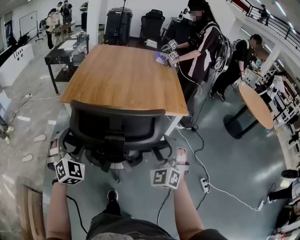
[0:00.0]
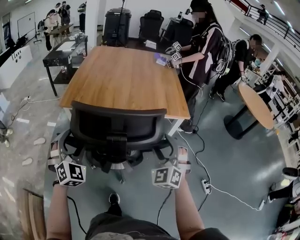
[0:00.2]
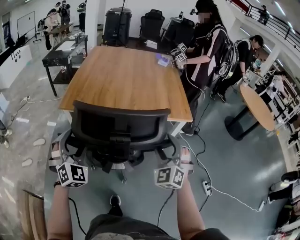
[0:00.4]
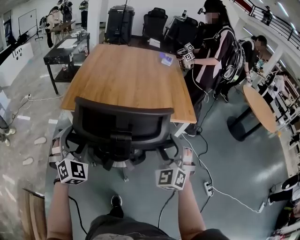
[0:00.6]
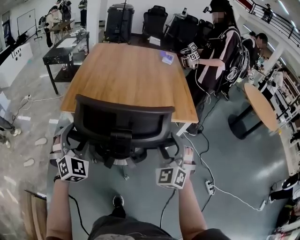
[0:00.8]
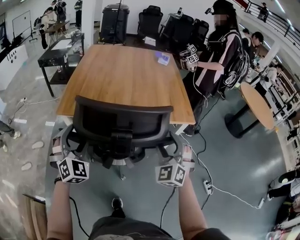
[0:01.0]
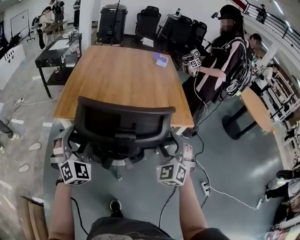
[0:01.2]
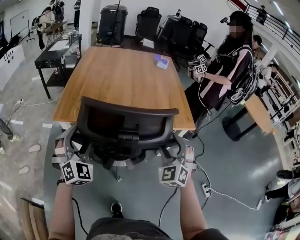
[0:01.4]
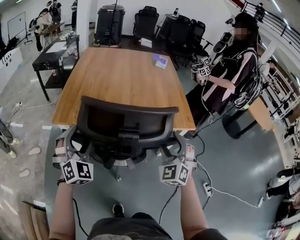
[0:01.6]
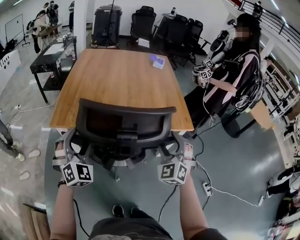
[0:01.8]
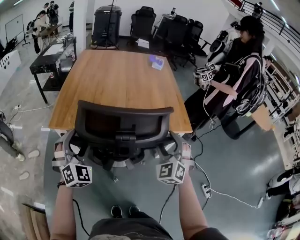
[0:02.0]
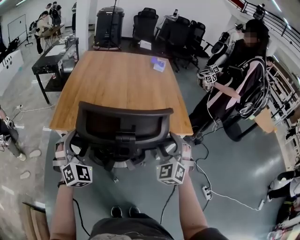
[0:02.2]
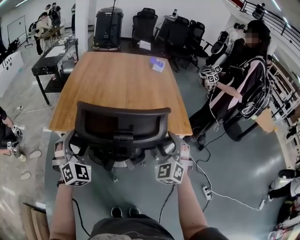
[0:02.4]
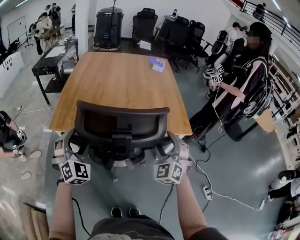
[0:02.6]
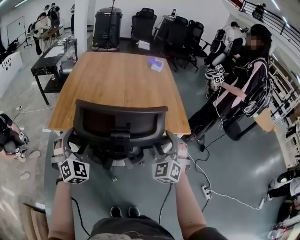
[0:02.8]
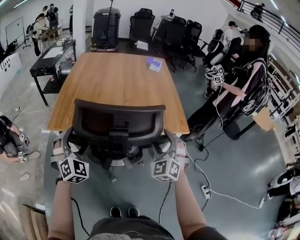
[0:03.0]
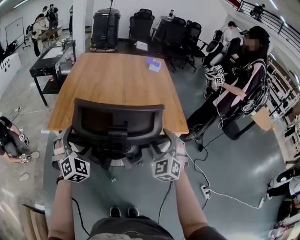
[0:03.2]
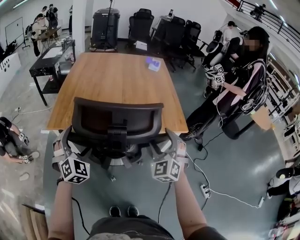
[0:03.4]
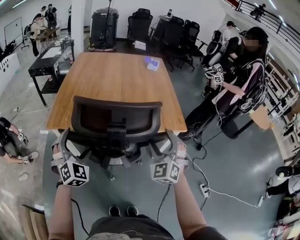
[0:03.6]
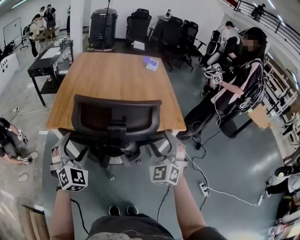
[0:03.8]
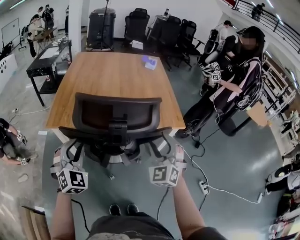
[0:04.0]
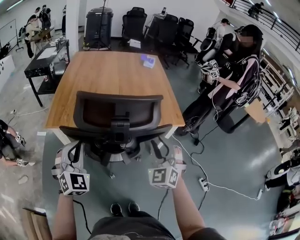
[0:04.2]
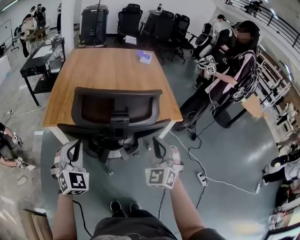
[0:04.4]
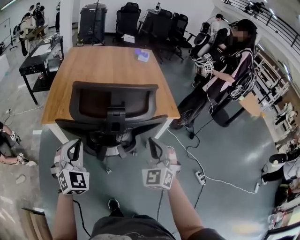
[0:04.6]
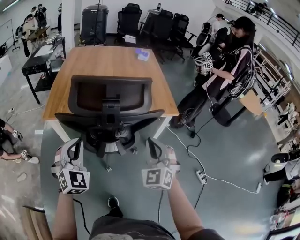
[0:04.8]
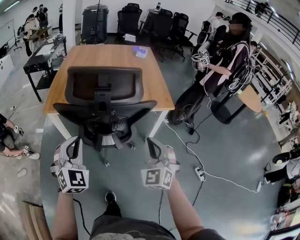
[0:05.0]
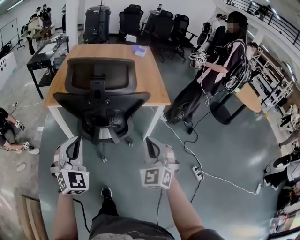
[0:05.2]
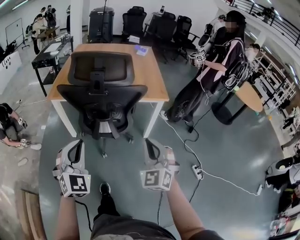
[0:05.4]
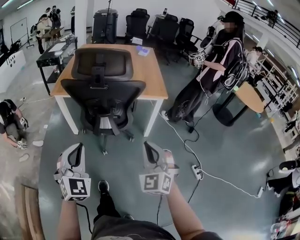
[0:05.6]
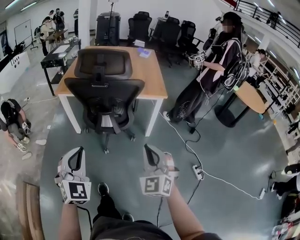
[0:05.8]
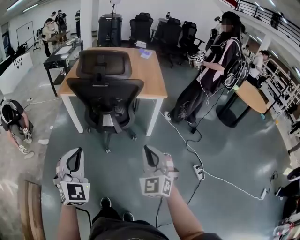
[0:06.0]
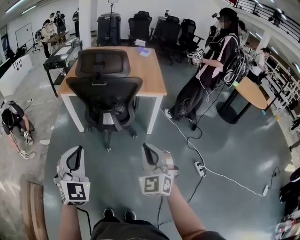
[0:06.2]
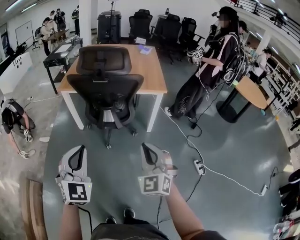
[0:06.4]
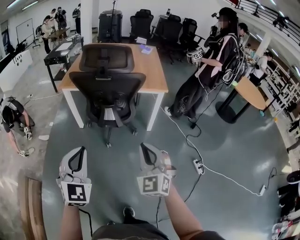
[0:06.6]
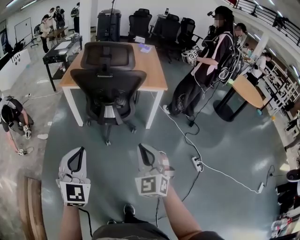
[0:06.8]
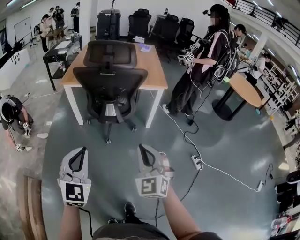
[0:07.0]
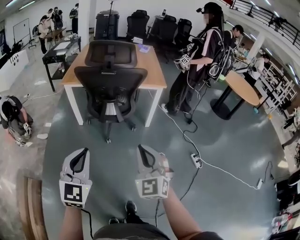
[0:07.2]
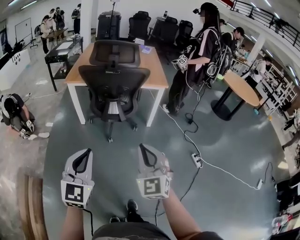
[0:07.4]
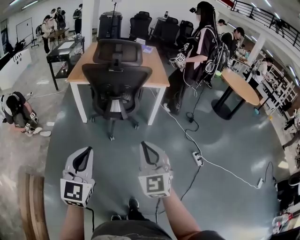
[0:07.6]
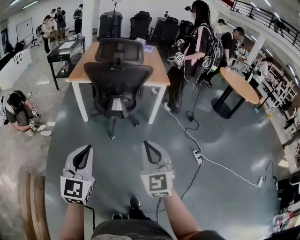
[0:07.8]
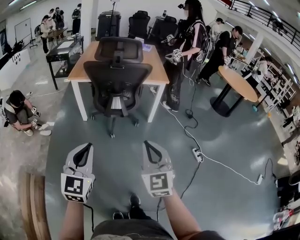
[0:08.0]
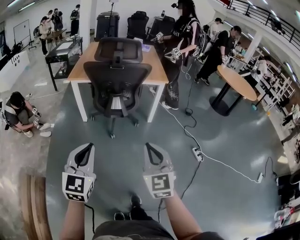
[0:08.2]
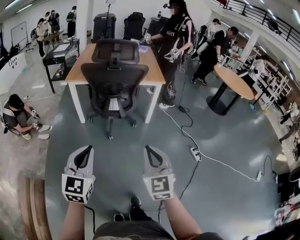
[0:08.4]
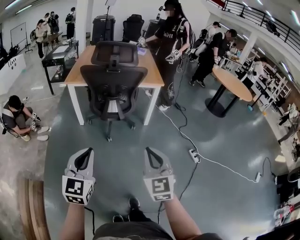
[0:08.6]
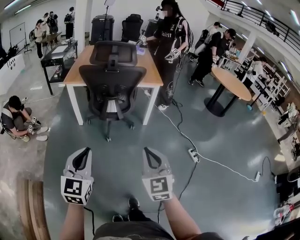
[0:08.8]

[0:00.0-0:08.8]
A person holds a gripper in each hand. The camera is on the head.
0:00.0 to 0:01.4: Both grippers move forward, roughly 20 cm.
0:01.4 to 0:03.0: The grippers make only small movements.
0:03.0 to 0:04.4: Both grippers move backward, roughly 10 cm. The right gripper closes up; the left gripper closes up.
0:04.4 to 0:05.8: The right gripper goes approximately 30 cm backward, while the left gripper travels backward and to the right by approximately 35 cm.
0:05.8 to 0:07.4: The right gripper is displaced backward and to the left by roughly 15 cm. The left gripper travels backward by roughly 15 cm, and turns by about 20 degrees.
0:07.4 to 0:08.8: The right gripper moves backward, roughly 5 cm.

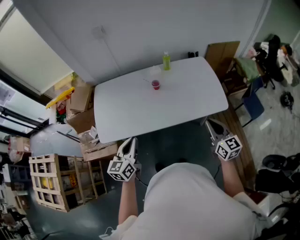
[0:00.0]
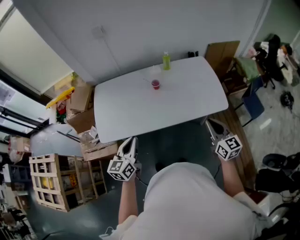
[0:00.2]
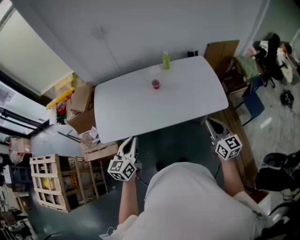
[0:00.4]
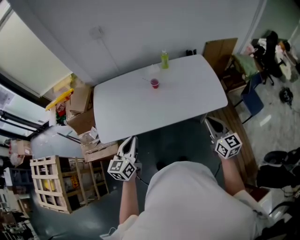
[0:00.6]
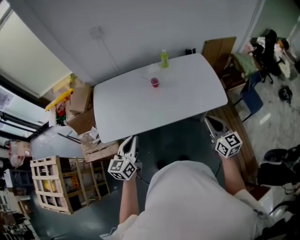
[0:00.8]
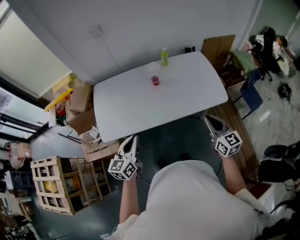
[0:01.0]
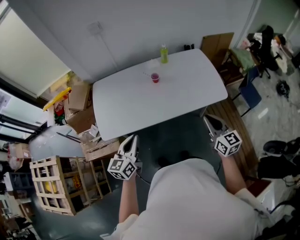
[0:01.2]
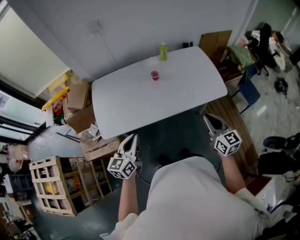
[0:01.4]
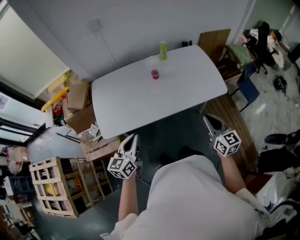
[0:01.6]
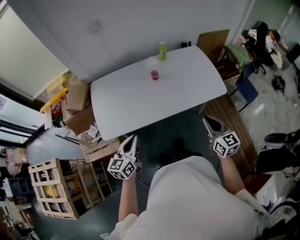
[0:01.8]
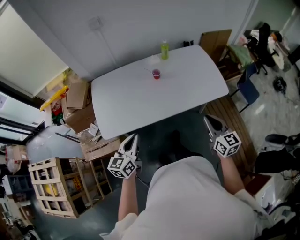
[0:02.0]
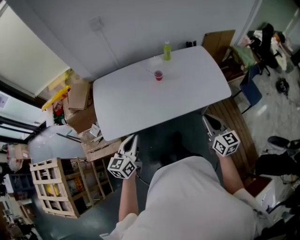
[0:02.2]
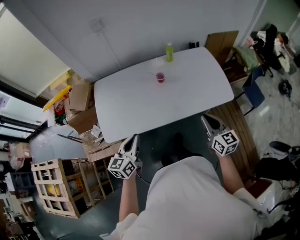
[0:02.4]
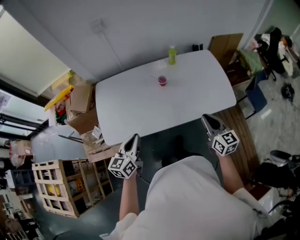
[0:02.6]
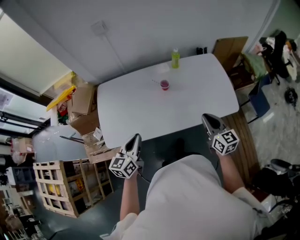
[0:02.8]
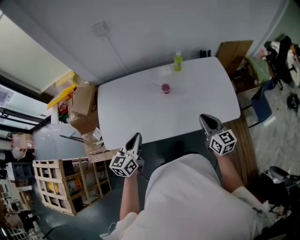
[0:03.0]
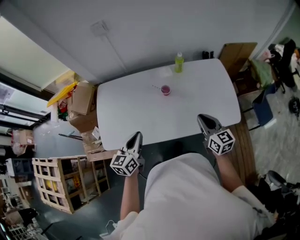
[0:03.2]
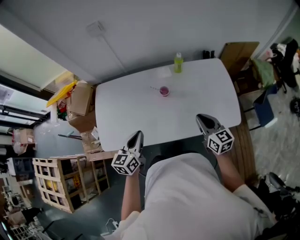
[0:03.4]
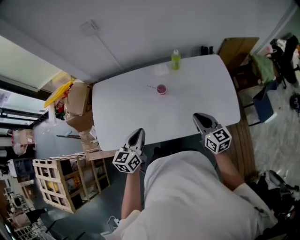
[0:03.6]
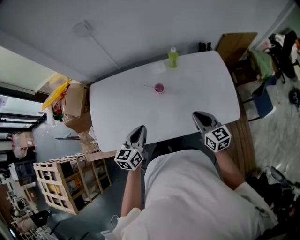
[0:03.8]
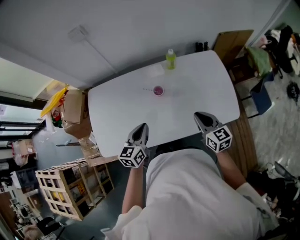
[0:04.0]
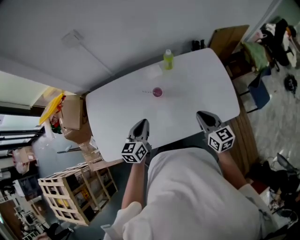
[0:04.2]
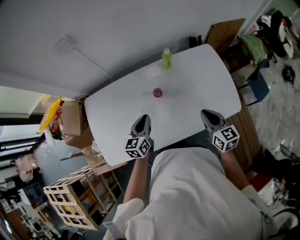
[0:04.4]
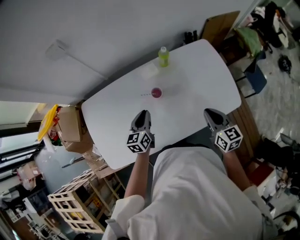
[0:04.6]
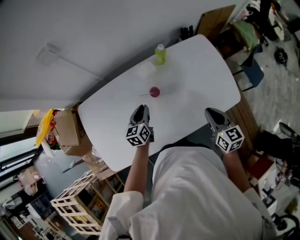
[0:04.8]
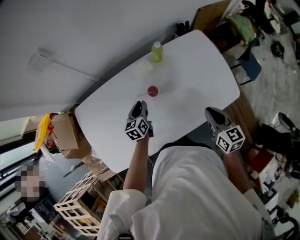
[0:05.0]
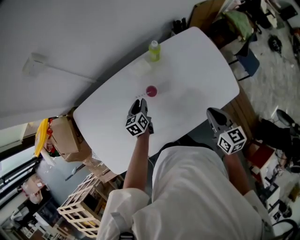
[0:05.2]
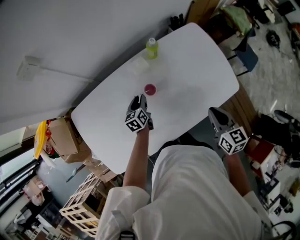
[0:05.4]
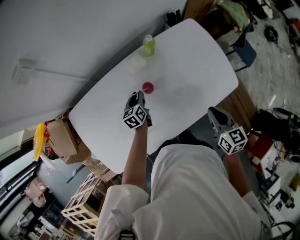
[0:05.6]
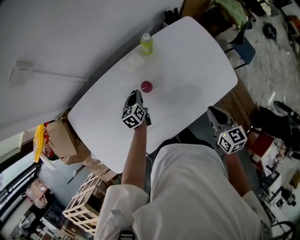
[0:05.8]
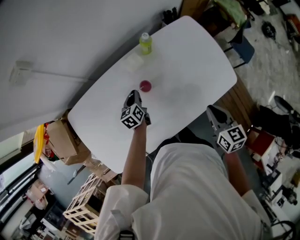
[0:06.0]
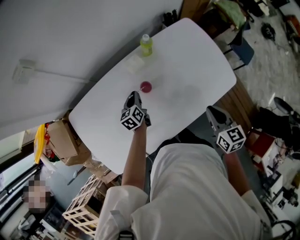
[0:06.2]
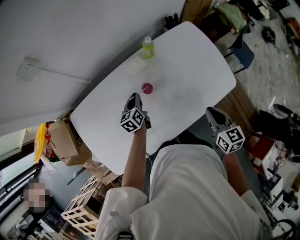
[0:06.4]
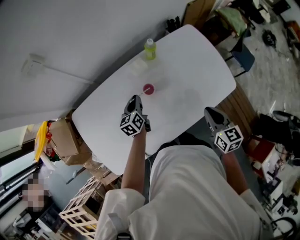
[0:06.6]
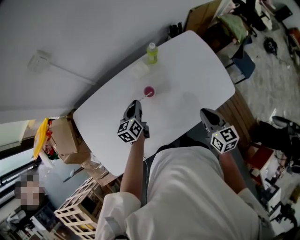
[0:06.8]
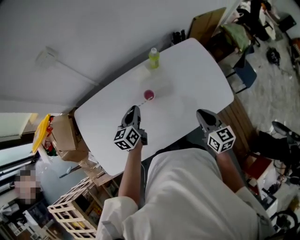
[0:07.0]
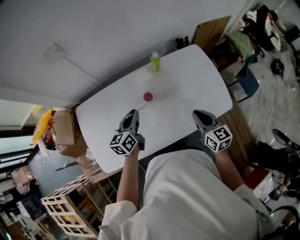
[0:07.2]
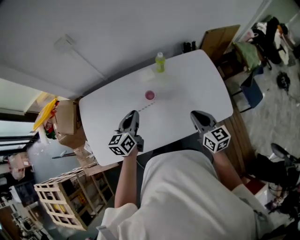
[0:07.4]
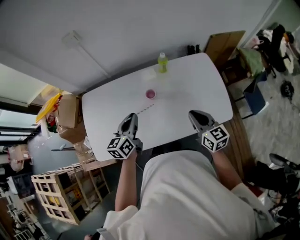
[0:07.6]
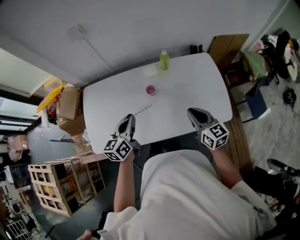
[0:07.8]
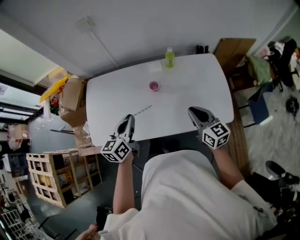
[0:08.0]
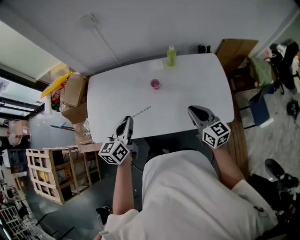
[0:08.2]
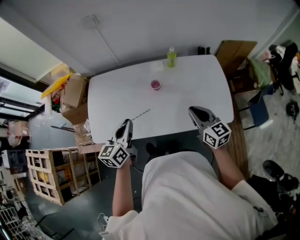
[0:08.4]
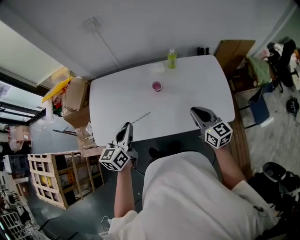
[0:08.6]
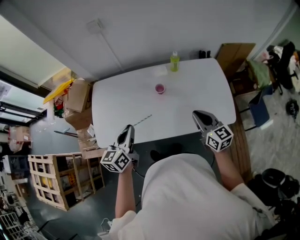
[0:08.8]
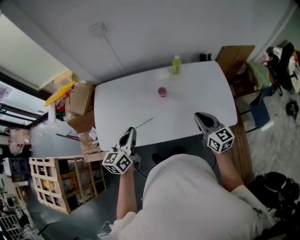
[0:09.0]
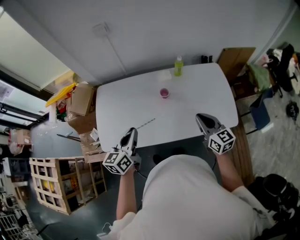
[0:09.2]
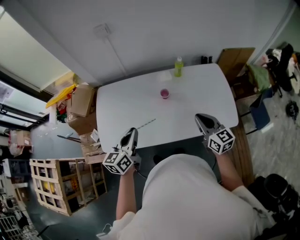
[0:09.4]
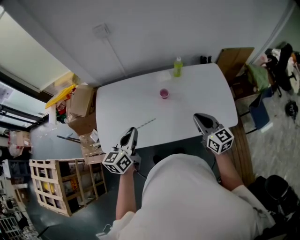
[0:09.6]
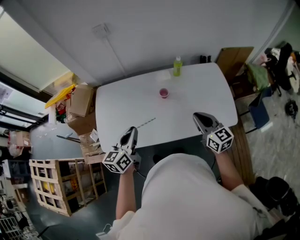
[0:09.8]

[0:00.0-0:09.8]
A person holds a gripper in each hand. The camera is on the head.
0:00.0 to 0:01.4: The right gripper goes about 5 cm to the left.
0:01.4 to 0:02.8: Both grippers move forward, about 15 cm.
0:02.8 to 0:04.2: The left gripper travels forward and to the right by roughly 20 cm, while the right gripper heads forward, covering approximately 15 cm.
0:04.2 to 0:05.6: The left gripper goes about 25 cm downward and forward, and opens its fingers, while the right gripper swivels some 20 degrees.
0:05.6 to 0:07.0: The left gripper moves upward and backward, some 15 cm, and closes.
0:07.0 to 0:08.4: The right gripper changes place by approximately 5 cm, and swivels some 30 degrees. Meanwhile the left gripper moves backward and upward, roughly 25 cm.
0:08.4 to 0:09.8: The grippers move only a little.

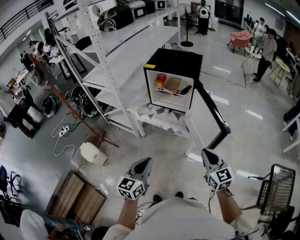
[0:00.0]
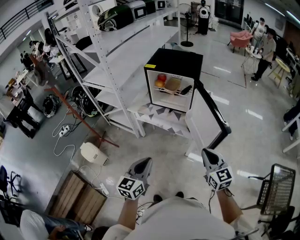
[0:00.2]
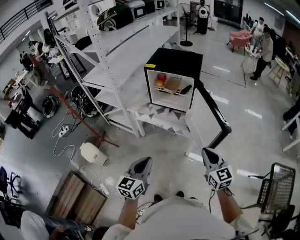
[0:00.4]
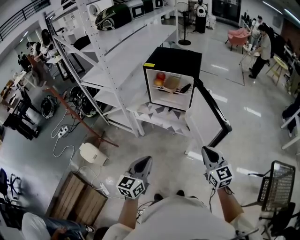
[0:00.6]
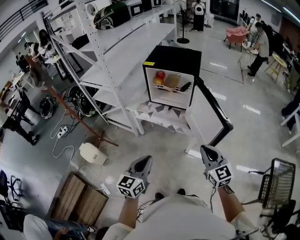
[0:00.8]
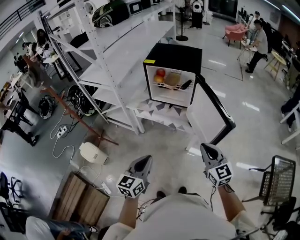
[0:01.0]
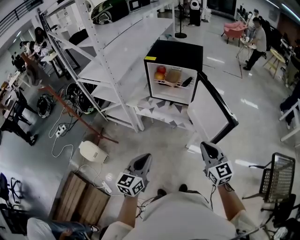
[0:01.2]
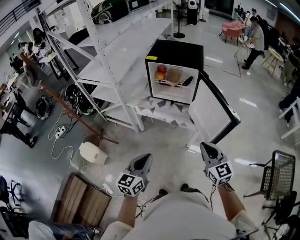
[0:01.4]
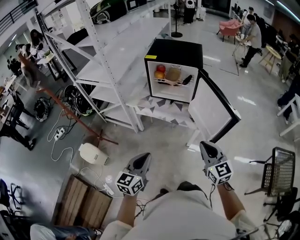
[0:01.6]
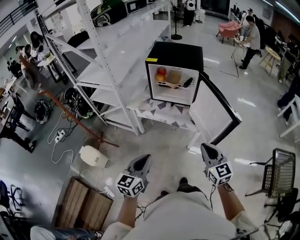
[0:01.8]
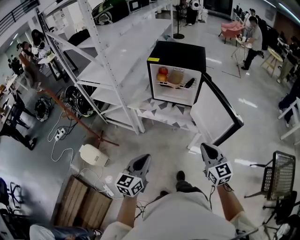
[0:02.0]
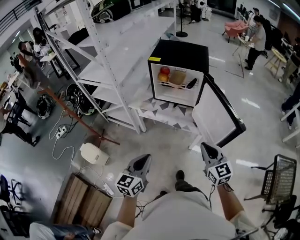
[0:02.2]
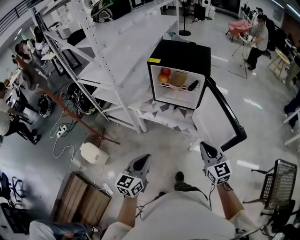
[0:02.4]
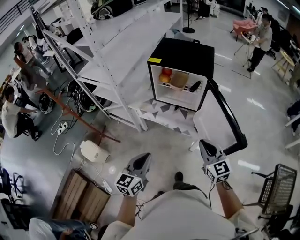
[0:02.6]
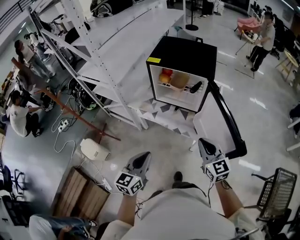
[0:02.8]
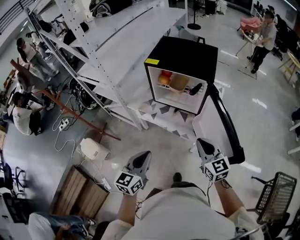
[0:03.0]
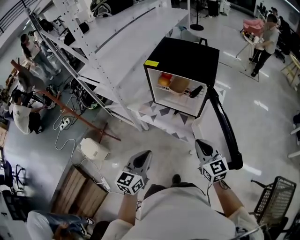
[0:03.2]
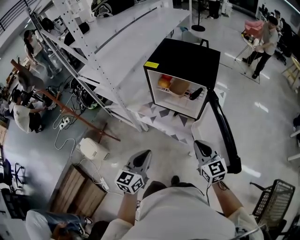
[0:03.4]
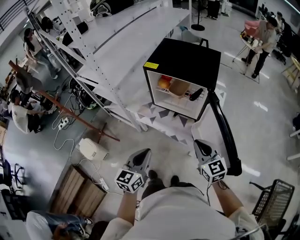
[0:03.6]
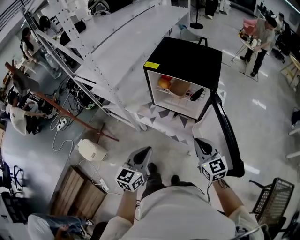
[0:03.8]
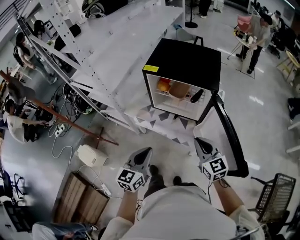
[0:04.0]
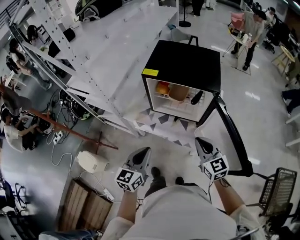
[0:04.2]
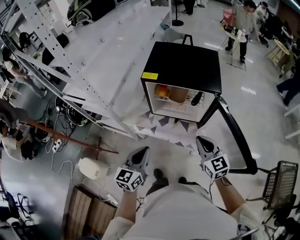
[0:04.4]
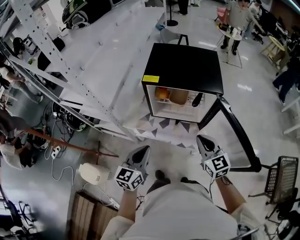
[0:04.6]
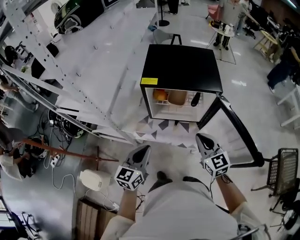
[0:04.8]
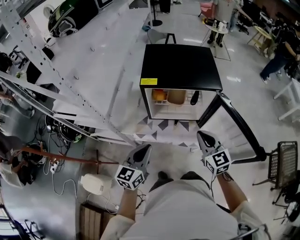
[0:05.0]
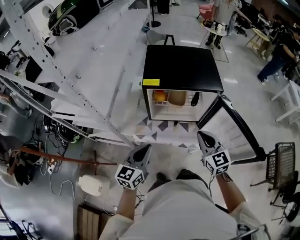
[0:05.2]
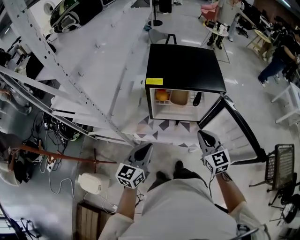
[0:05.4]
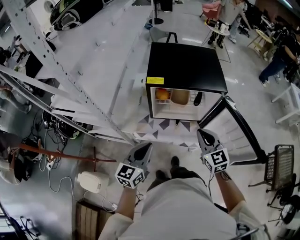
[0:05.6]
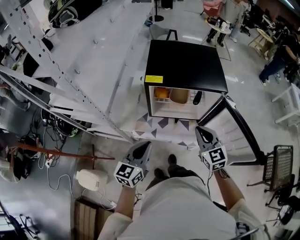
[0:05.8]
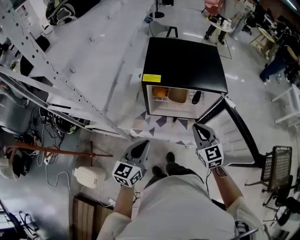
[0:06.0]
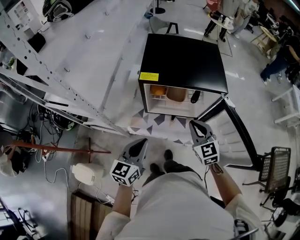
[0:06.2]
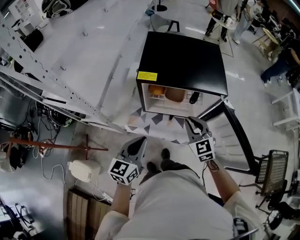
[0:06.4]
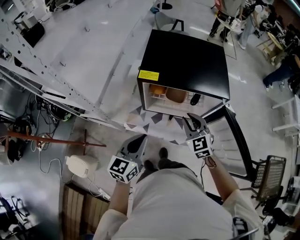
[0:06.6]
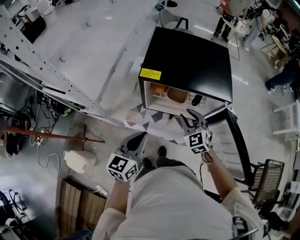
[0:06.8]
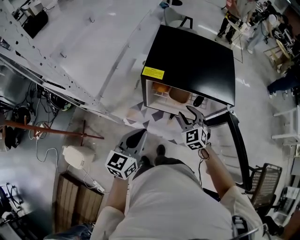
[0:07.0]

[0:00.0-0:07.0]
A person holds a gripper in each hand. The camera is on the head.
0:00.0 to 0:01.4: Both grippers travel together to the left, some 10 cm.
0:01.4 to 0:02.8: The grippers both shift forward by roughly 15 cm.
0:02.8 to 0:04.2: Both grippers move forward, approximately 15 cm.
0:04.2 to 0:05.6: The grippers both shift to the left and forward by approximately 10 cm.
0:05.6 to 0:07.0: The right gripper travels forward and downward by about 20 cm, turns by some 30 degrees, and opens up; the left gripper heads forward, covering roughly 5 cm.
